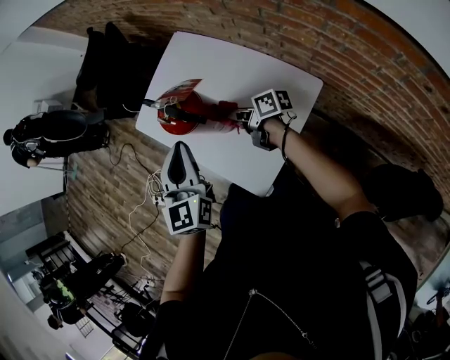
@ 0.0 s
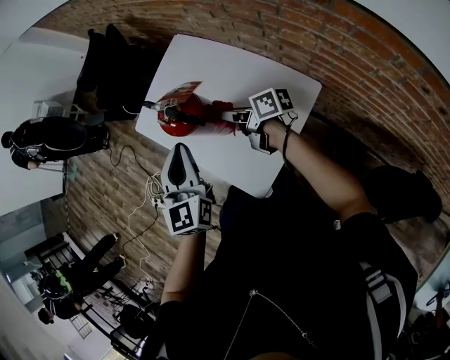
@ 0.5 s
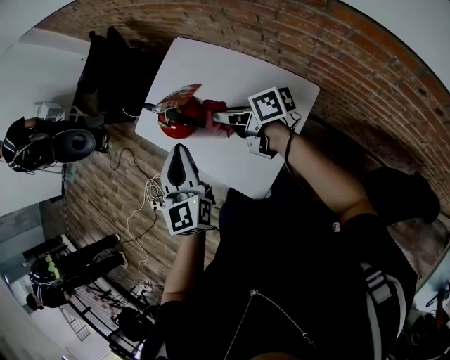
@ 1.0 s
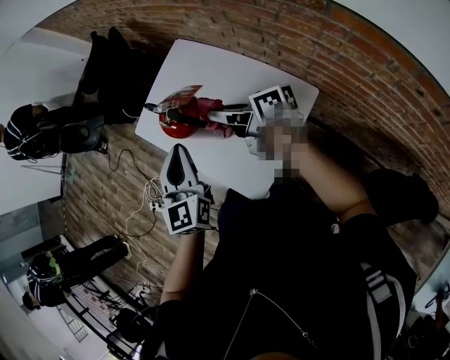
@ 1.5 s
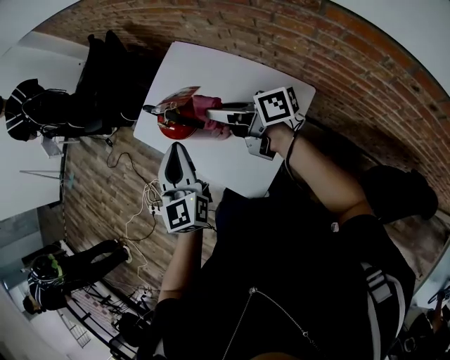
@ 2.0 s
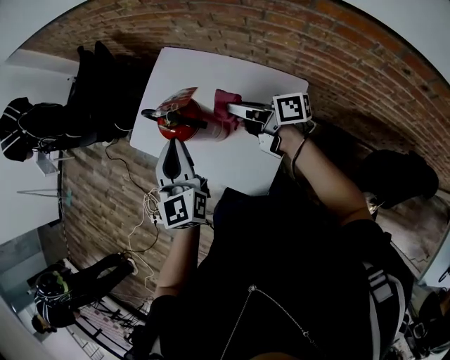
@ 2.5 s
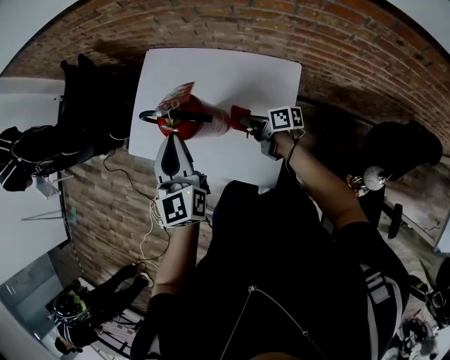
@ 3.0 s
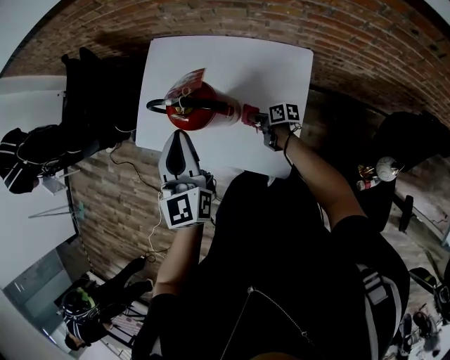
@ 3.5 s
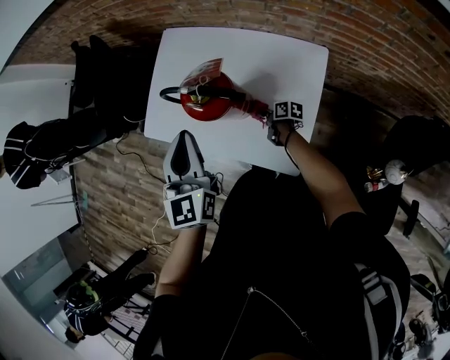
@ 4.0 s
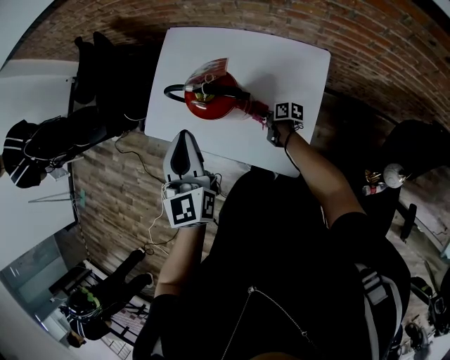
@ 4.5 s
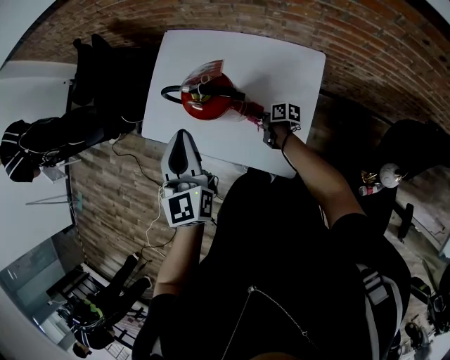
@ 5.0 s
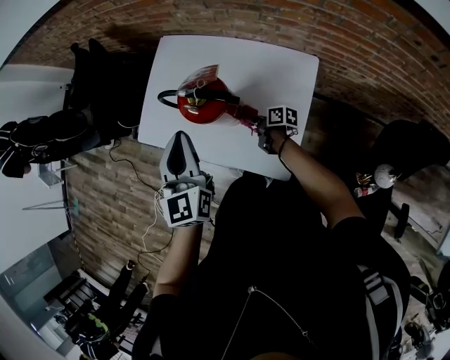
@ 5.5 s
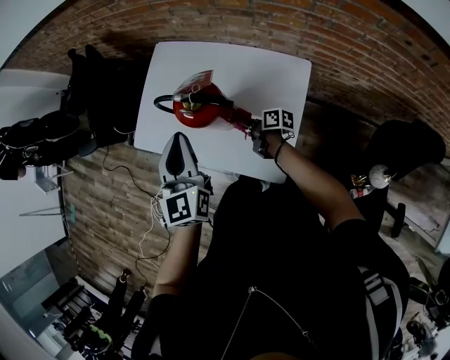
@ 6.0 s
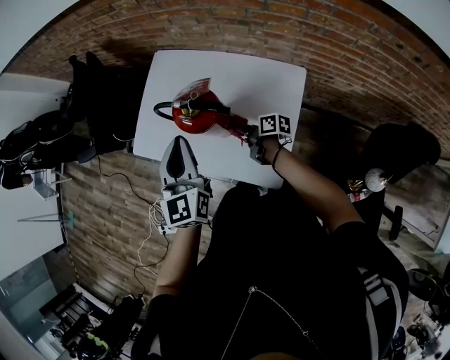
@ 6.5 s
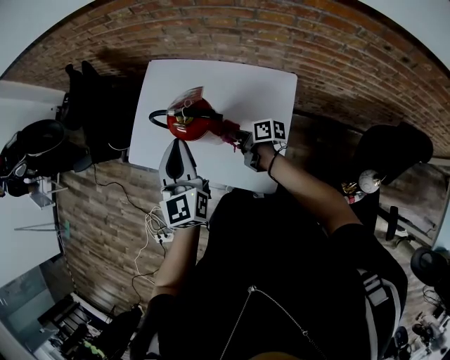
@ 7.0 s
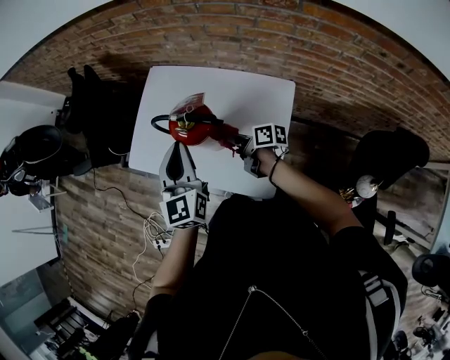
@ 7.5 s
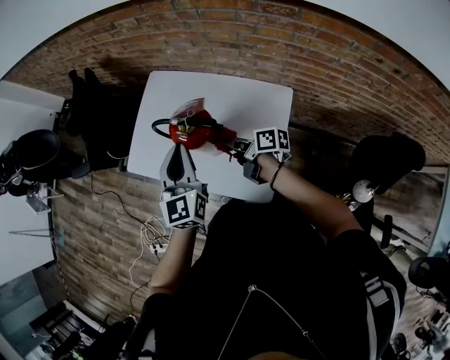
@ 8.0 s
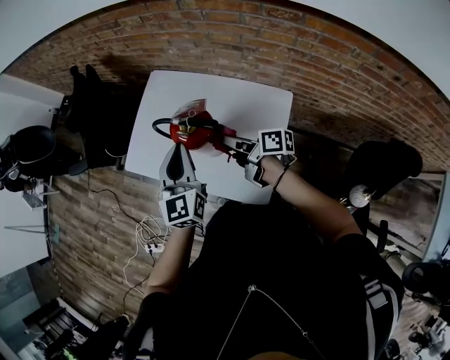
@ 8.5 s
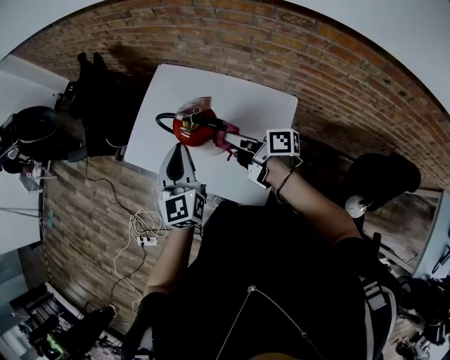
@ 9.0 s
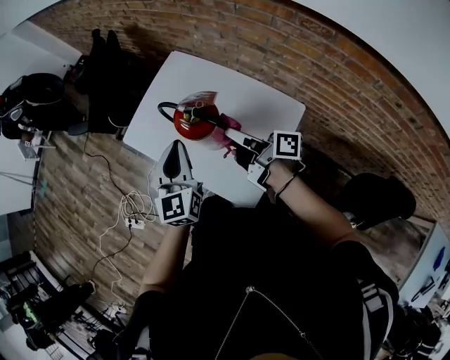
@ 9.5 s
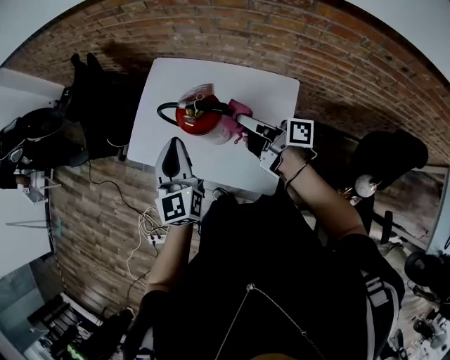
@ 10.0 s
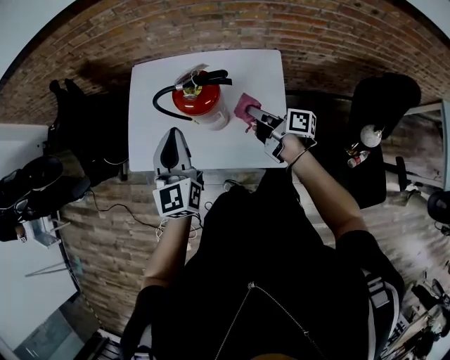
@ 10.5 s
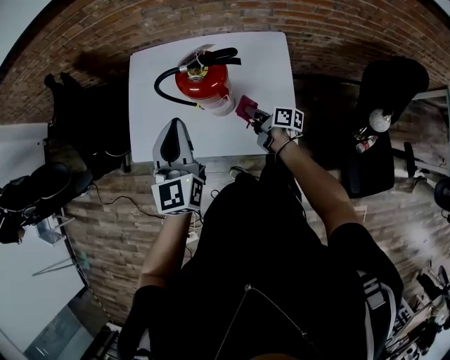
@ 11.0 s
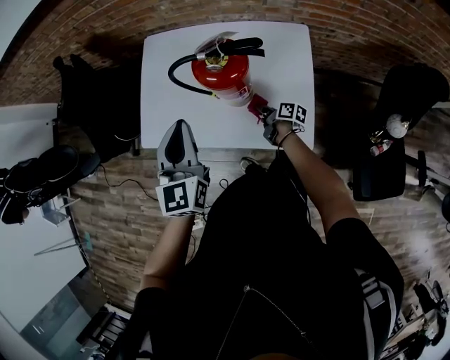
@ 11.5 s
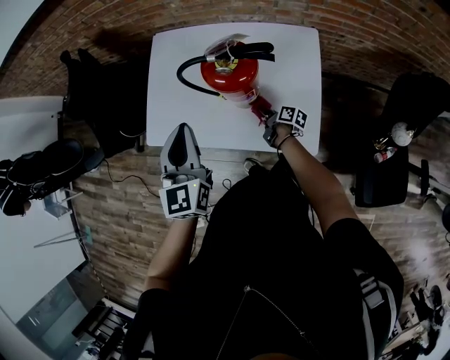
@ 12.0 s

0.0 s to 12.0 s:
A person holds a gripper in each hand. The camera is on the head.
0.0 to 2.0 s: The right gripper is displaced upward by roughly 20 cm, and turns by approximately 20 degrees.
2.0 to 4.0 s: The left gripper shifts about 5 cm to the left. Meanwhile the right gripper travels downward by roughly 40 cm, and tilts its fingers some 40 degrees downward.
4.0 to 6.0 s: The right gripper heads upward, covering roughly 10 cm.
6.0 to 8.0 s: The right gripper travels upward by roughly 15 cm.
8.0 to 10.0 s: The right gripper heads upward, covering some 10 cm, and rotates roughly 20 degrees.
10.0 to 12.0 s: The left gripper goes approximately 10 cm to the left. Meanwhile the right gripper goes approximately 35 cm downward, and tilts its fingers approximately 30 degrees downward.

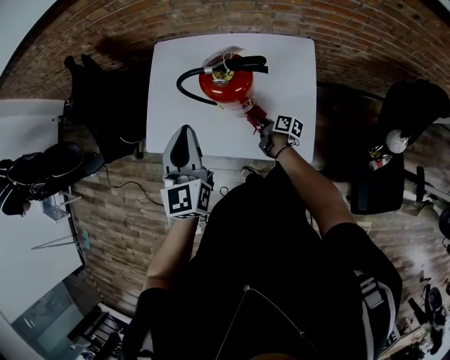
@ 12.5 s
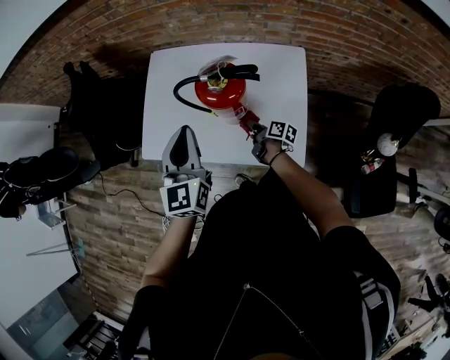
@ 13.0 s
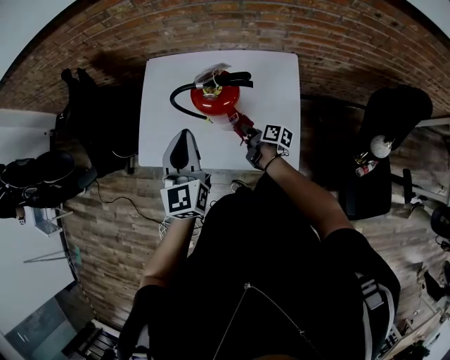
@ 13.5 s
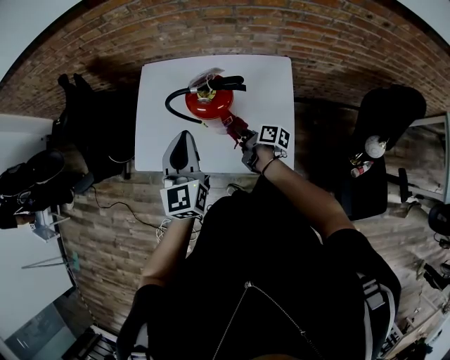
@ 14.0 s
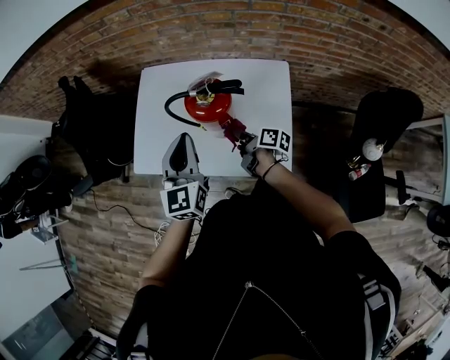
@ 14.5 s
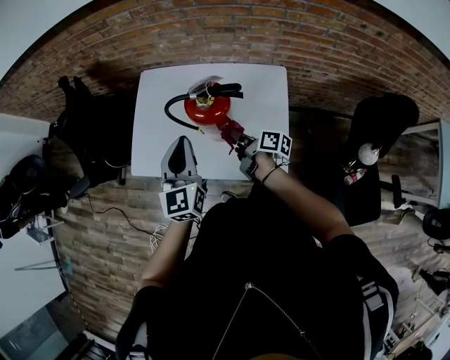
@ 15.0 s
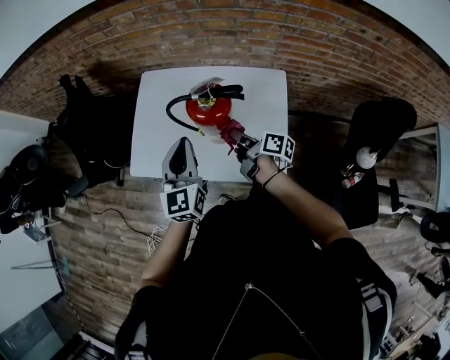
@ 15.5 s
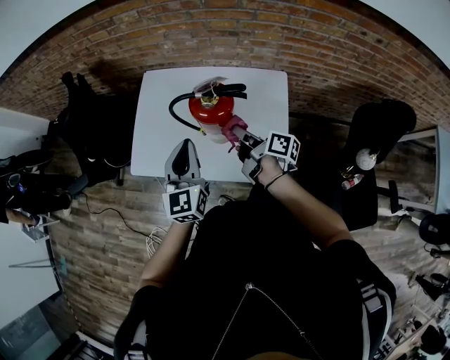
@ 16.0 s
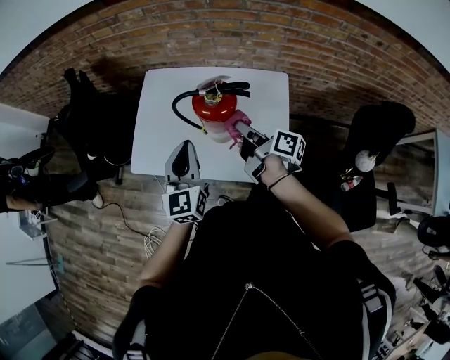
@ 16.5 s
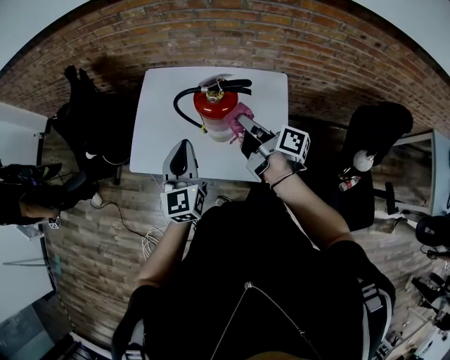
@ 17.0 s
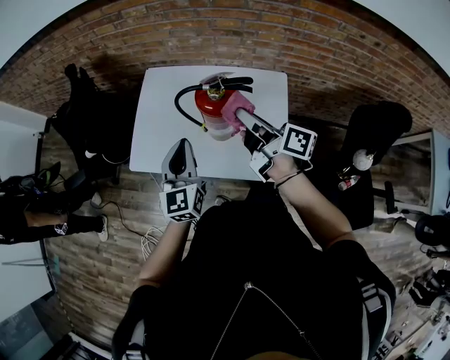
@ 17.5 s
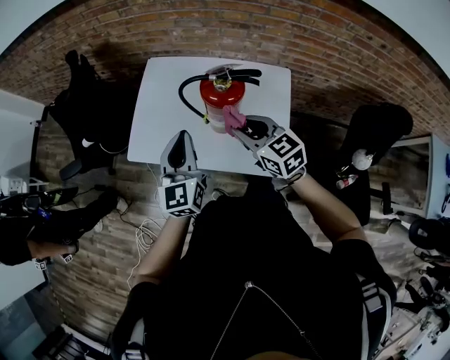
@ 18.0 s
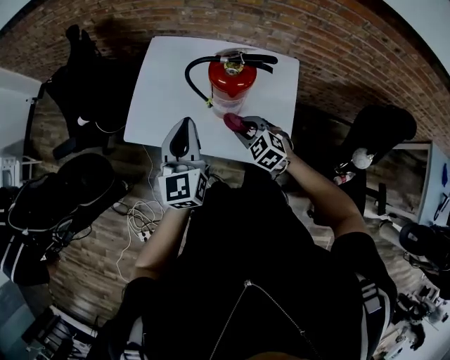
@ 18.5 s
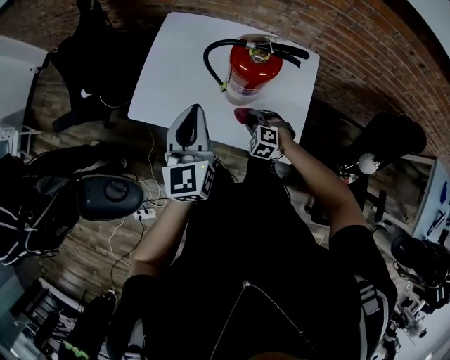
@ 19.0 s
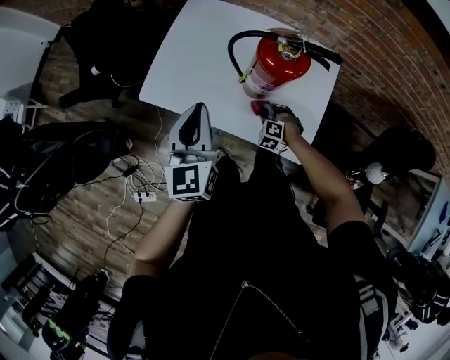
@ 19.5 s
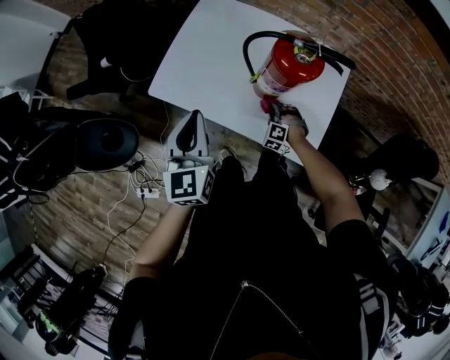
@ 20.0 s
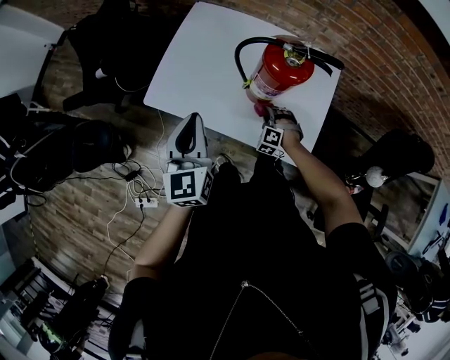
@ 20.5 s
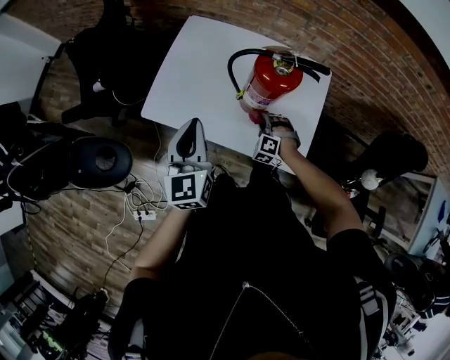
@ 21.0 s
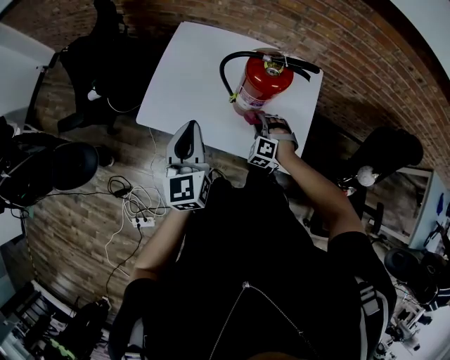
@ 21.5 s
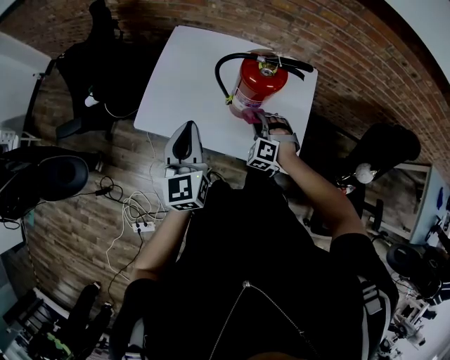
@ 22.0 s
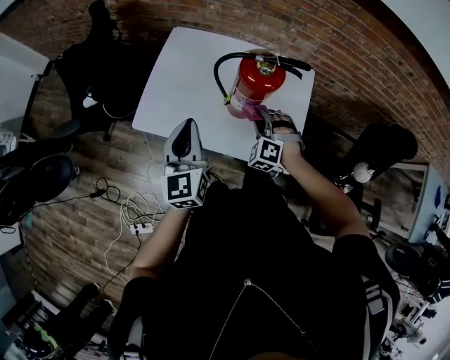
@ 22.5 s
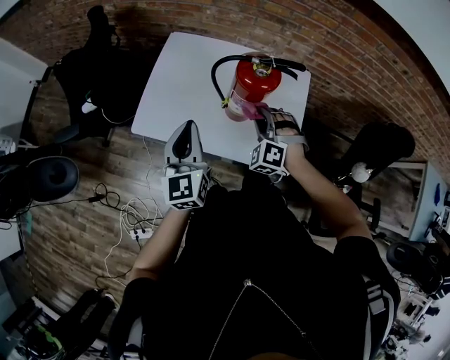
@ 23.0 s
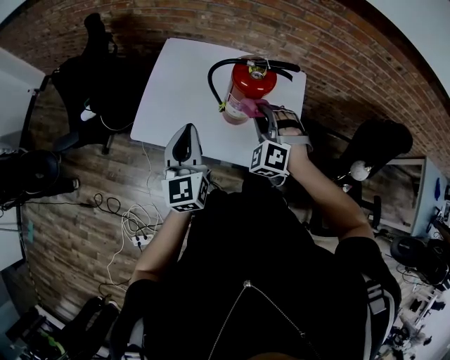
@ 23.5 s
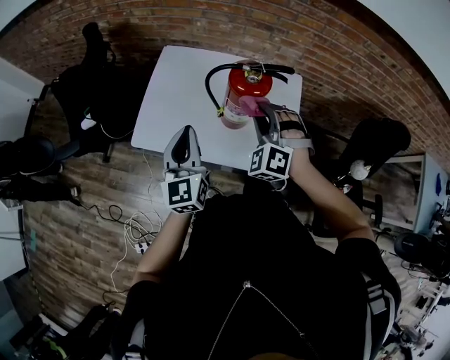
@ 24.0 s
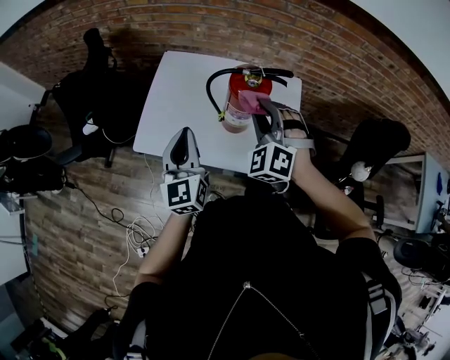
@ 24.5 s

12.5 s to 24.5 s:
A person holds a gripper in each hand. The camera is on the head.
12.5 to 14.5 s: The right gripper shifts approximately 15 cm upward.
14.5 to 16.5 s: The right gripper moves upward, approximately 15 cm.
16.5 to 18.5 s: The right gripper is displaced downward and to the left by some 10 cm, and rolls counterclockwise, seen from behind, by some 100 degrees.
18.5 to 20.5 s: The right gripper moves downward, about 20 cm, and turns by some 40 degrees, while the left gripper moves to the left, roughly 10 cm.
20.5 to 22.5 s: The right gripper travels upward by roughly 20 cm.
22.5 to 24.5 s: The right gripper goes roughly 20 cm upward.

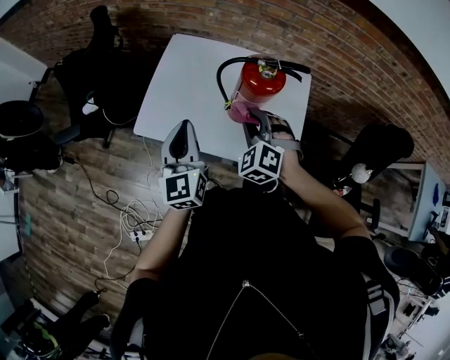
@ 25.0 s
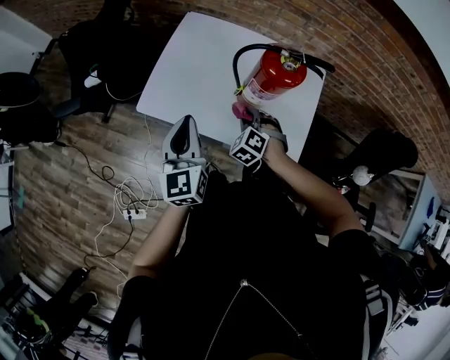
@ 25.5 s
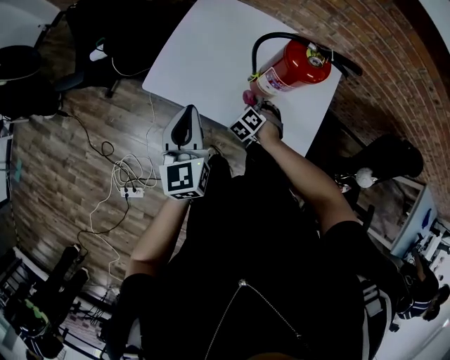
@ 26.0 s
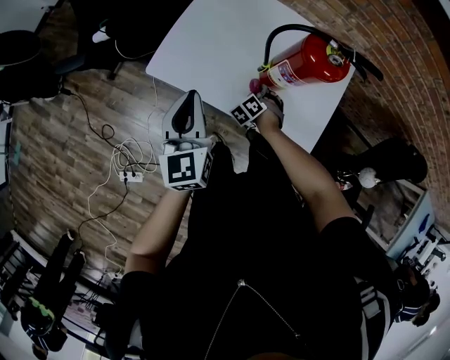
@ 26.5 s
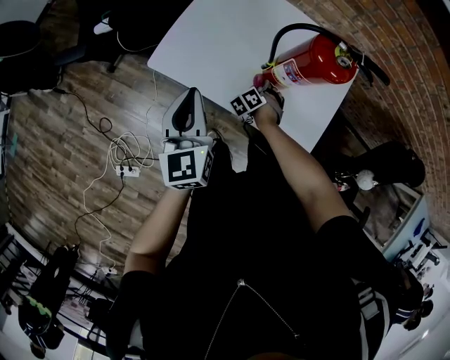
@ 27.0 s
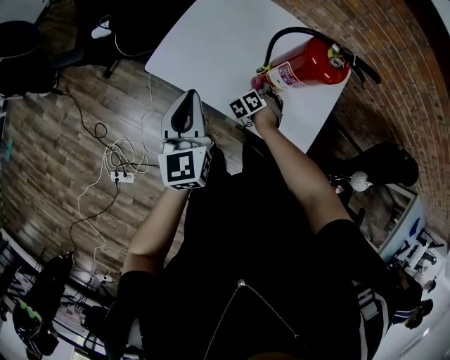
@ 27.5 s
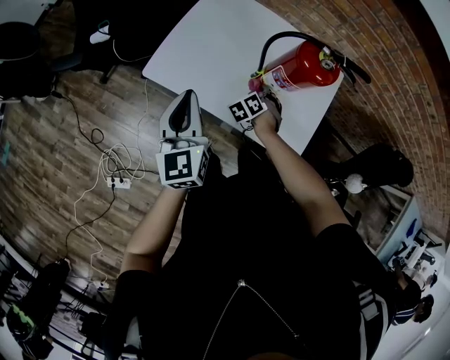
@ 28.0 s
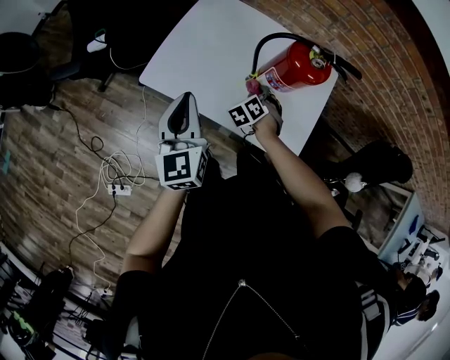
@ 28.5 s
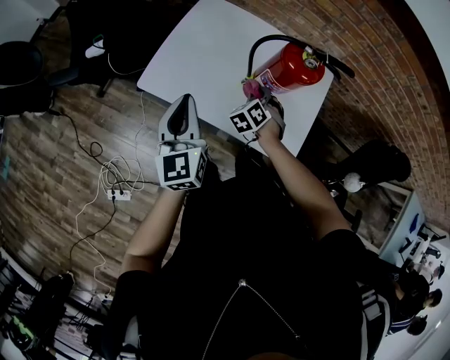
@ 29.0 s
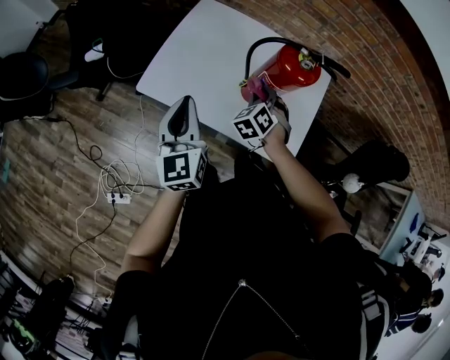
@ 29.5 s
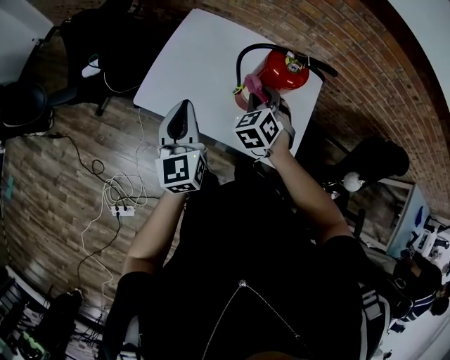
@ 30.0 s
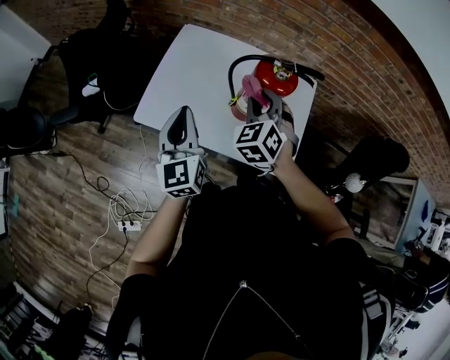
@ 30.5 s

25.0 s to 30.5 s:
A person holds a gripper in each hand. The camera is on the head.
25.0 to 27.0 s: The left gripper goes approximately 10 cm downward and to the left. Meanwhile the right gripper travels downward by some 35 cm, and swivels approximately 30 degrees.
27.0 to 28.5 s: The right gripper moves upward, some 10 cm.
28.5 to 30.5 s: The right gripper heads upward, covering approximately 25 cm, and rotates approximately 30 degrees. Meanwhile the left gripper changes place by roughly 5 cm.
